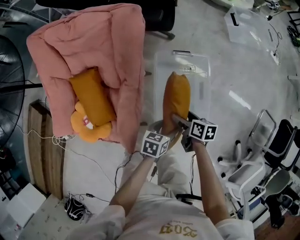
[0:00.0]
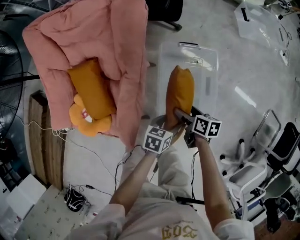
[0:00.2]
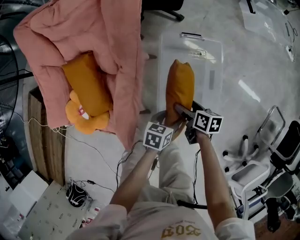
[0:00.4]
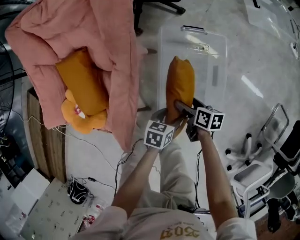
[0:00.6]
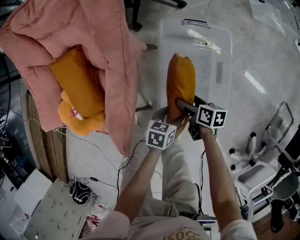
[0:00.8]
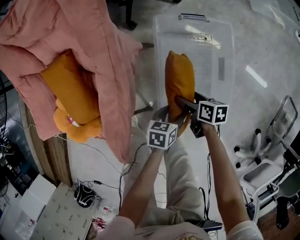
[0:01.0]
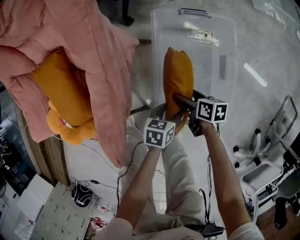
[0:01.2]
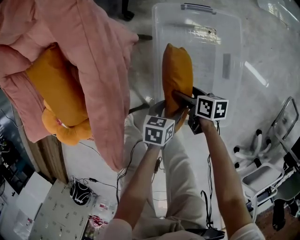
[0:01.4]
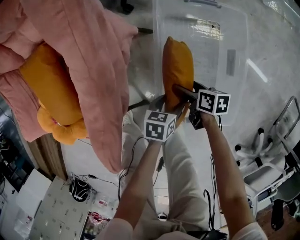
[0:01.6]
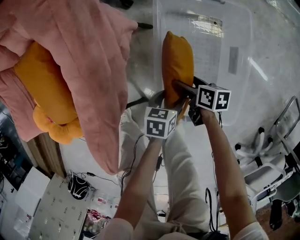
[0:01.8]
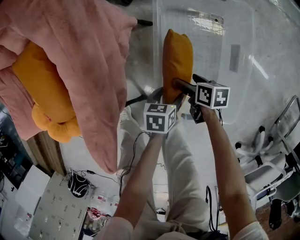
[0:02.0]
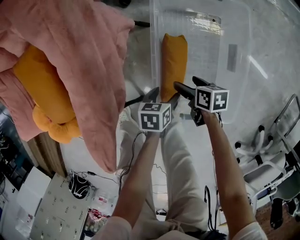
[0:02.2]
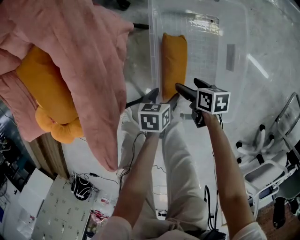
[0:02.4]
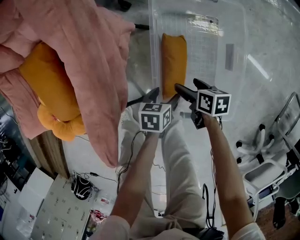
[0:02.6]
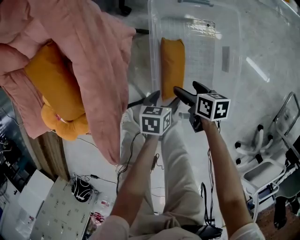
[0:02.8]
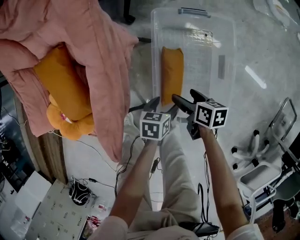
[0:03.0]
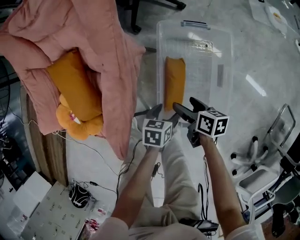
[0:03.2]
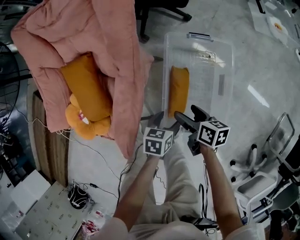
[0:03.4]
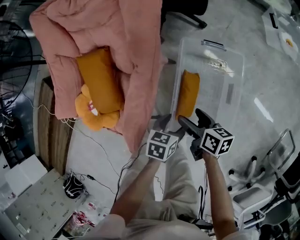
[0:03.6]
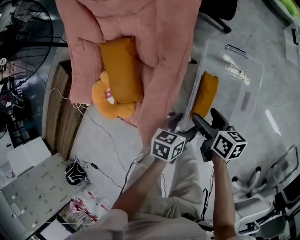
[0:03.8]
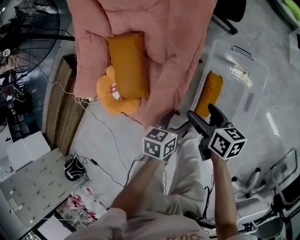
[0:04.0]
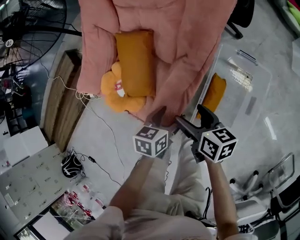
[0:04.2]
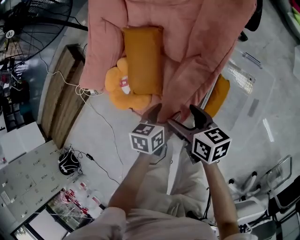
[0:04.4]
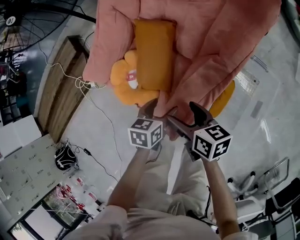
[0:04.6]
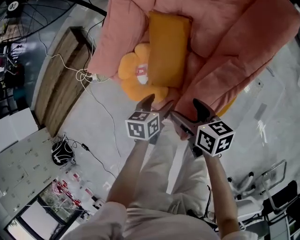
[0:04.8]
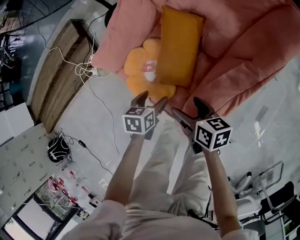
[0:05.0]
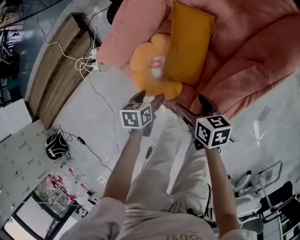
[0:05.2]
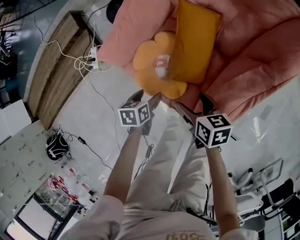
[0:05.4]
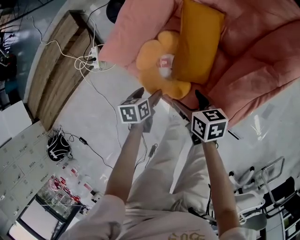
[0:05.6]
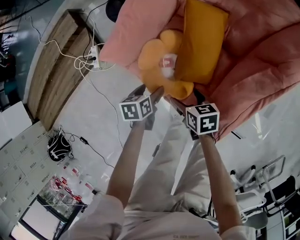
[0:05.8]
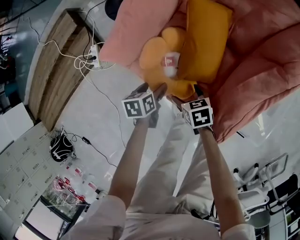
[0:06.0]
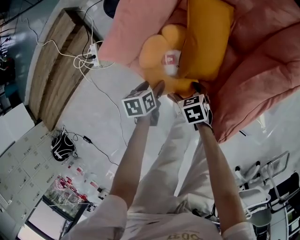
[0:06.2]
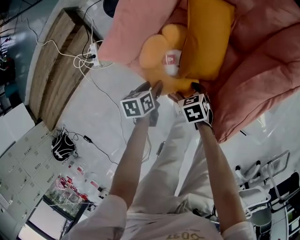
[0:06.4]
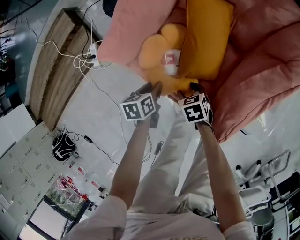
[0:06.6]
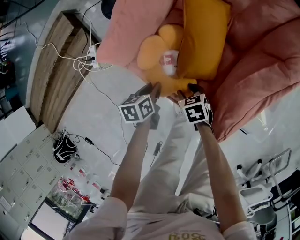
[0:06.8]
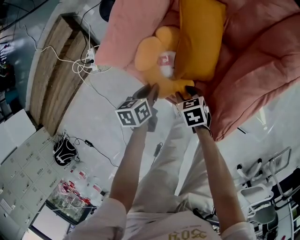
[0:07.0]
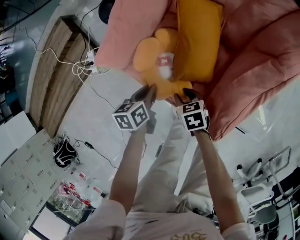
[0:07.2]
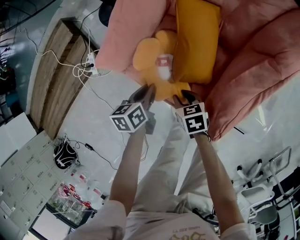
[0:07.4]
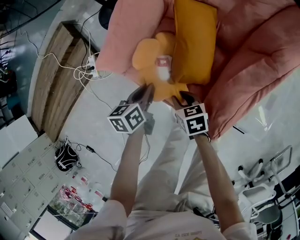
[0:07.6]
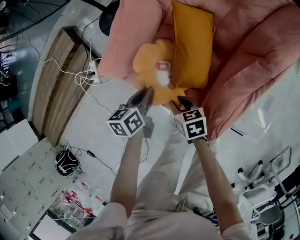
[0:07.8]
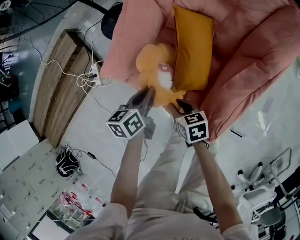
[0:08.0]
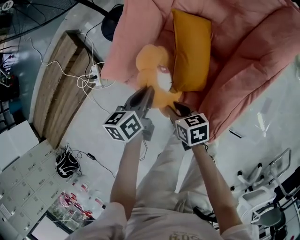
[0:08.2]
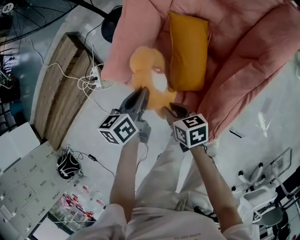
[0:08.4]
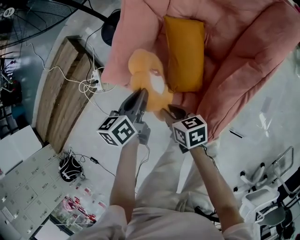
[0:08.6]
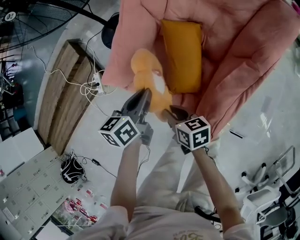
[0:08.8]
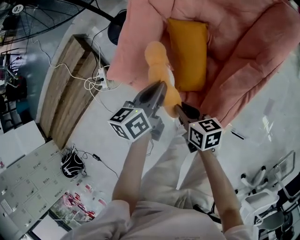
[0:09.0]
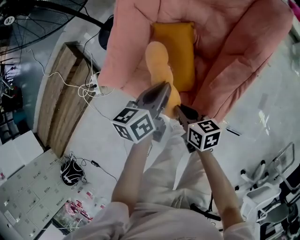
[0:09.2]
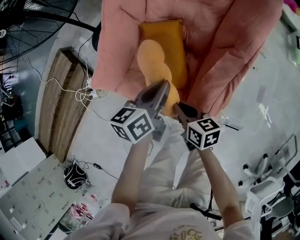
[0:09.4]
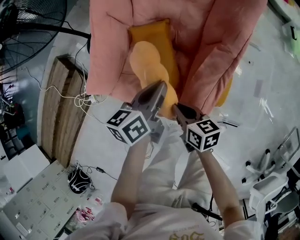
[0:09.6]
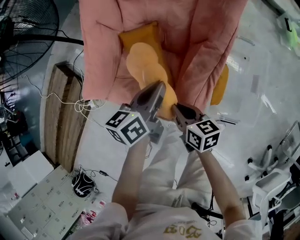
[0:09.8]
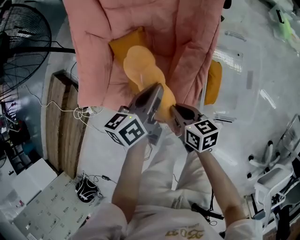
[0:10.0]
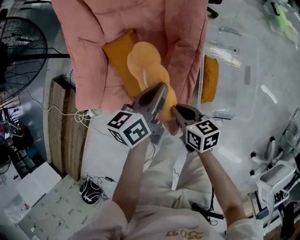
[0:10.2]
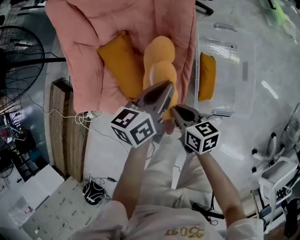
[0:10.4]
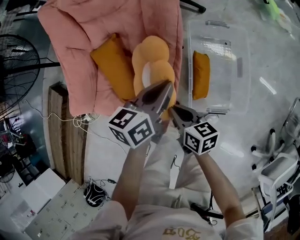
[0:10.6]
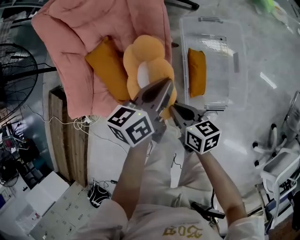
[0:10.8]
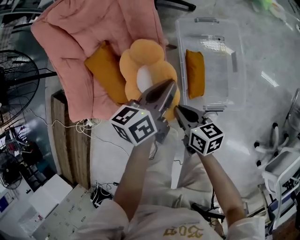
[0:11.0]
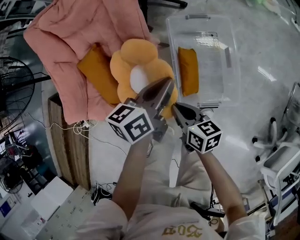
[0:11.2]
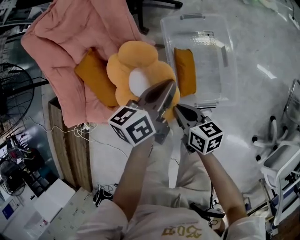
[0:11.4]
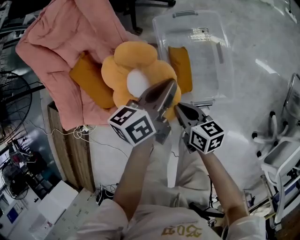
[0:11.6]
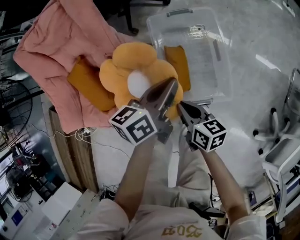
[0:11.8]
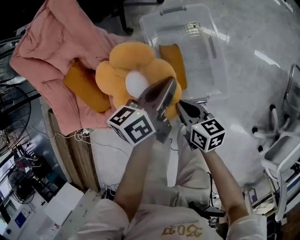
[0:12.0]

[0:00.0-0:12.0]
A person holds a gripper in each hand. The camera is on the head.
0:00.0 to 0:01.6: The two grippers go approximately 30 cm downward.
0:01.6 to 0:03.0: The right gripper travels upward by some 10 cm, while the left gripper travels upward by about 5 cm.
0:03.0 to 0:04.4: The two grippers go roughly 25 cm upward. The right gripper swivels roughly 30 degrees, while the left gripper swivels about 30 degrees.
0:04.4 to 0:06.0: Both grippers travel together to the left and downward, some 35 cm. The right gripper swivels some 40 degrees. The left gripper swivels some 20 degrees.
0:06.0 to 0:07.6: The right gripper closes; the left gripper heads upward, covering some 10 cm, and closes up.
0:07.6 to 0:09.0: The right gripper is displaced upward by approximately 15 cm, and turns by approximately 20 degrees. The left gripper moves upward and to the right, about 20 cm.
0:09.0 to 0:10.4: The two grippers go some 25 cm to the right. The left gripper turns by about 30 degrees. The right gripper turns by some 20 degrees.
0:10.4 to 0:12.0: The grippers both shift to the right by approximately 25 cm.

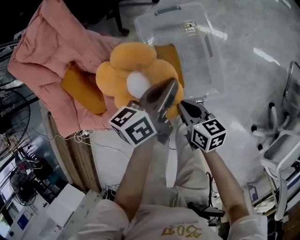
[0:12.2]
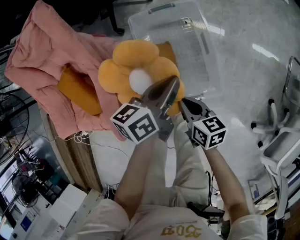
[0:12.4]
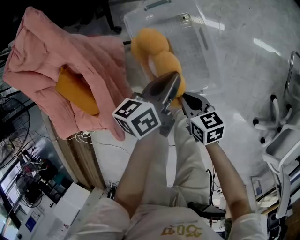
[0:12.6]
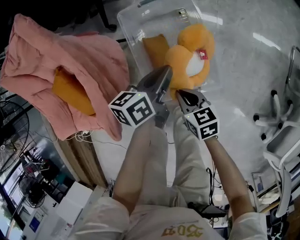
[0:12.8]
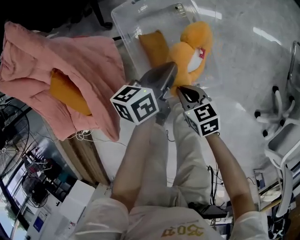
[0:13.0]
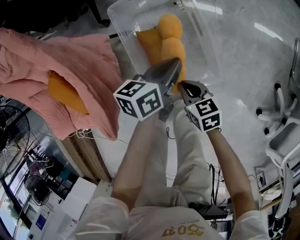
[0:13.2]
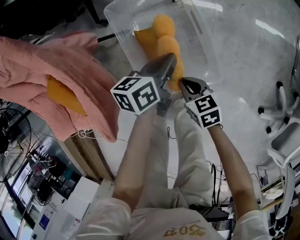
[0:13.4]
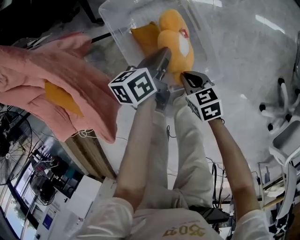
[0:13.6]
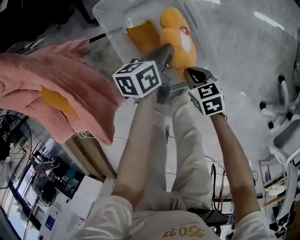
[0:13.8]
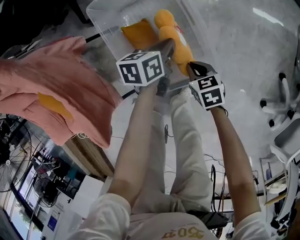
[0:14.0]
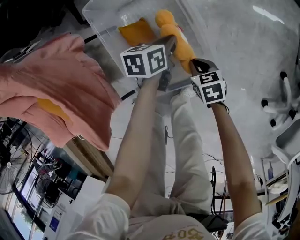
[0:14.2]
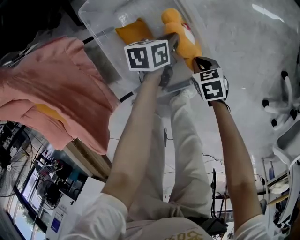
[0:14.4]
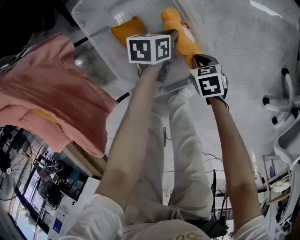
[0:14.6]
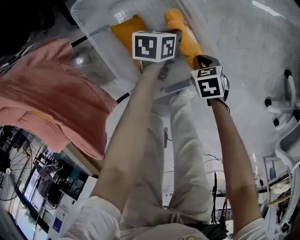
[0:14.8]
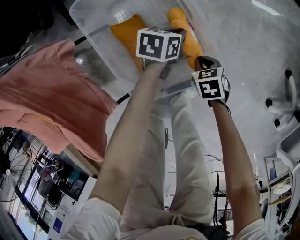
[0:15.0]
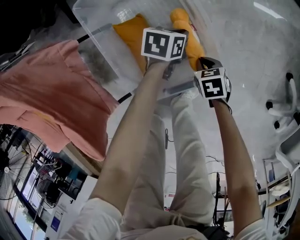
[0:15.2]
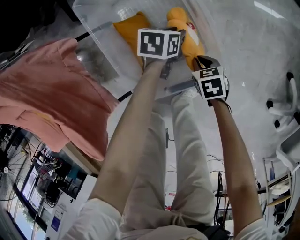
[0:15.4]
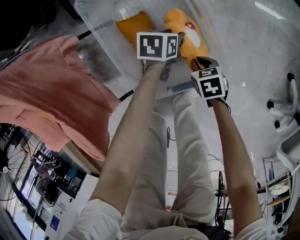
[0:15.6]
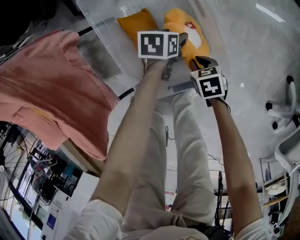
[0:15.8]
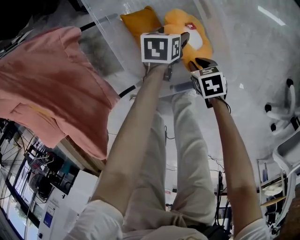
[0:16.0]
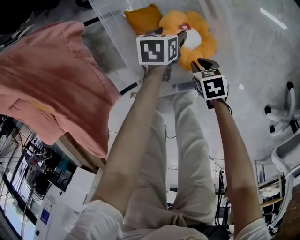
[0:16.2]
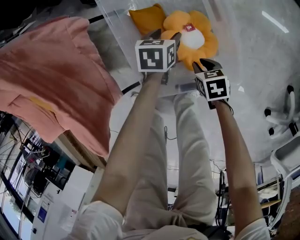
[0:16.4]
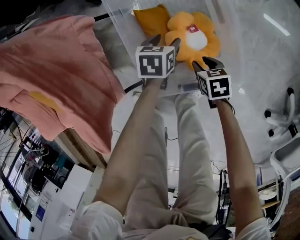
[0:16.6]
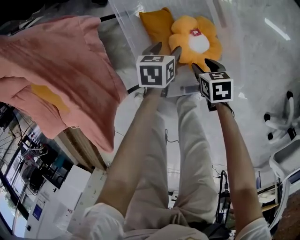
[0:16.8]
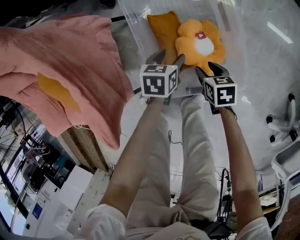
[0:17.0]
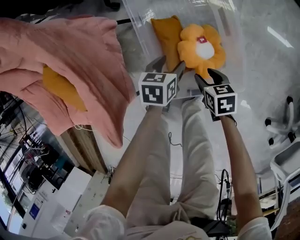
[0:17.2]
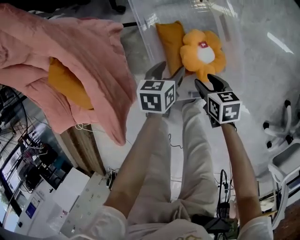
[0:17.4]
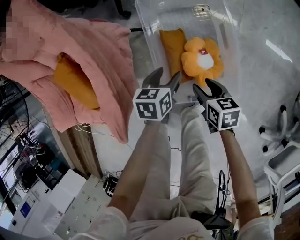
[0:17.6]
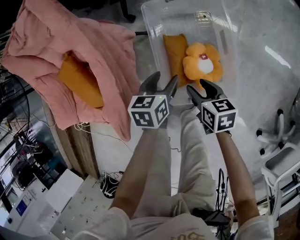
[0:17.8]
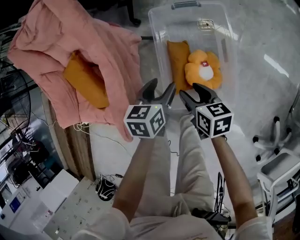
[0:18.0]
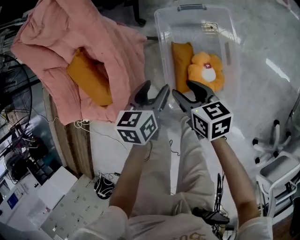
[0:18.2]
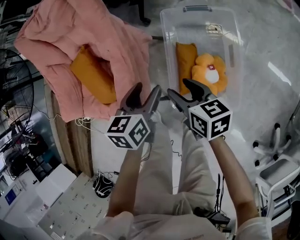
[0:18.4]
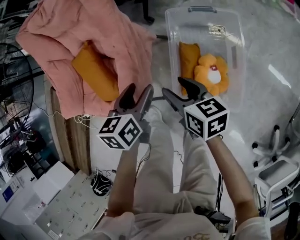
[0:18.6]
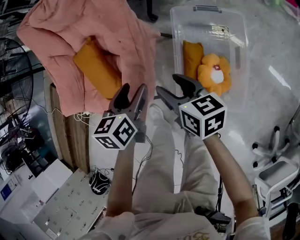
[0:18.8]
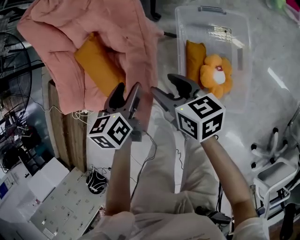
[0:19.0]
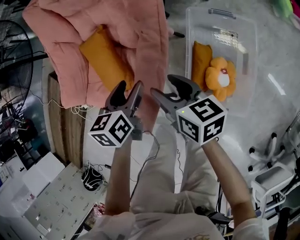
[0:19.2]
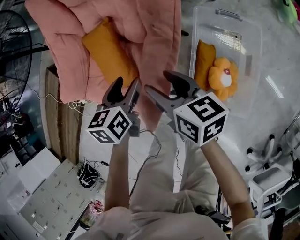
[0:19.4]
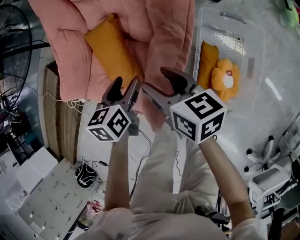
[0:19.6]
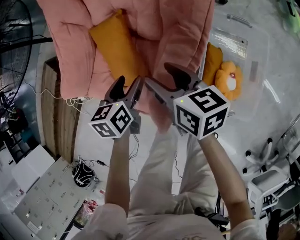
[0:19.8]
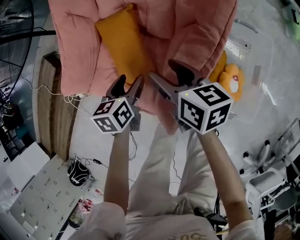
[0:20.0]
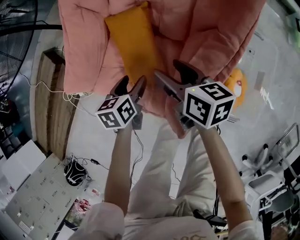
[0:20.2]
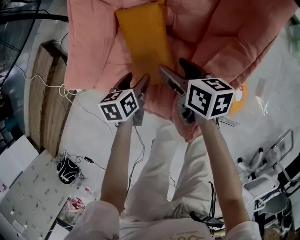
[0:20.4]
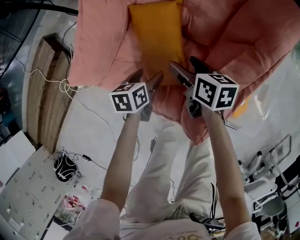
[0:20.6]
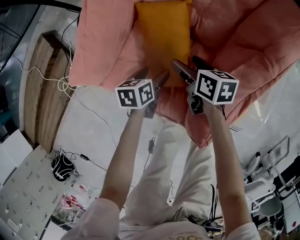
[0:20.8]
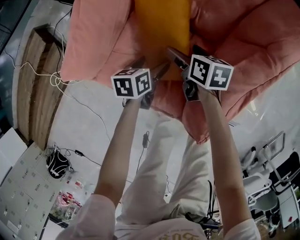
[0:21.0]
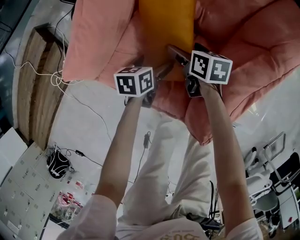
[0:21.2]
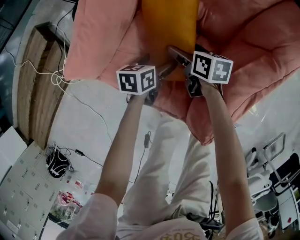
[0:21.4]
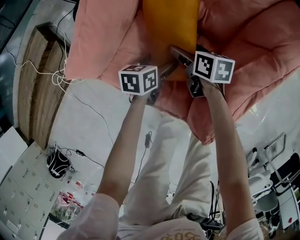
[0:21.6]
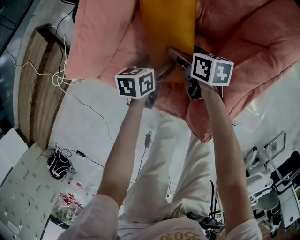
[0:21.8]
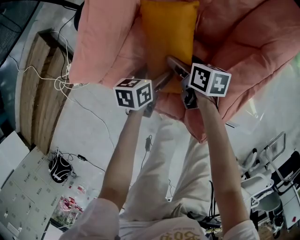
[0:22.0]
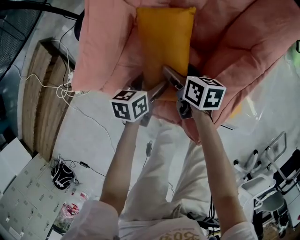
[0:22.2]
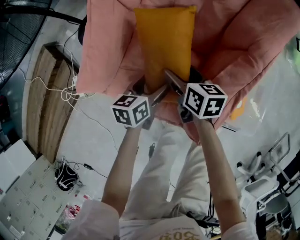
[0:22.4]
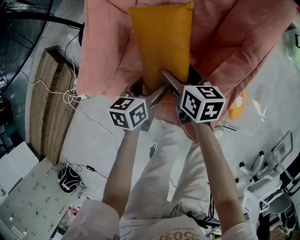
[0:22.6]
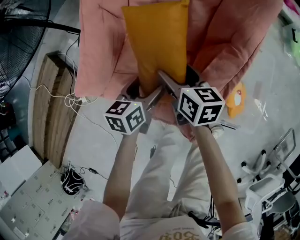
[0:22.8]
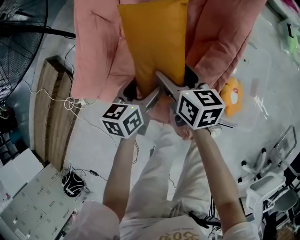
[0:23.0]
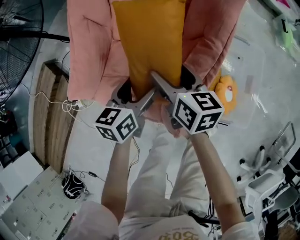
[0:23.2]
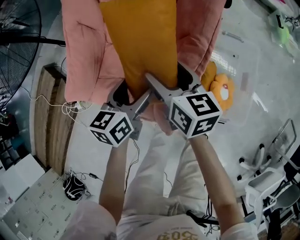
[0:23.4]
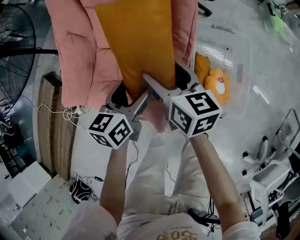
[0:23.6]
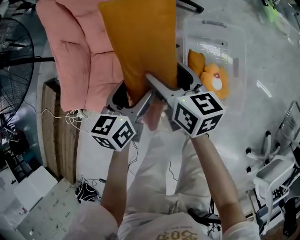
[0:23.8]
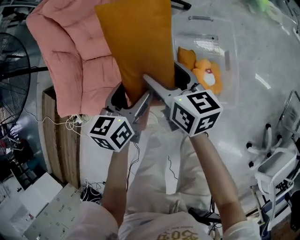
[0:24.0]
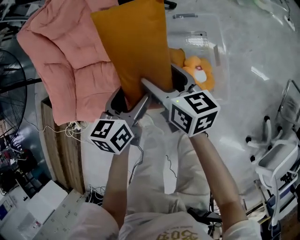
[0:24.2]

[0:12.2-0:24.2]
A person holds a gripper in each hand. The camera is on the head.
0:12.2 to 0:13.8: The two grippers go some 25 cm downward and to the right. The left gripper rotates about 20 degrees, while the right gripper changes its angle by approximately 20 degrees.
0:13.8 to 0:15.2: The left gripper travels downward by roughly 15 cm, and changes its angle by roughly 30 degrees, while the right gripper goes some 15 cm downward and to the right.
0:15.2 to 0:16.6: The left gripper changes place by roughly 15 cm, swivels roughly 20 degrees, and opens its fingers, while the right gripper changes place by some 10 cm.
0:16.6 to 0:18.2: The two grippers go roughly 30 cm upward. The right gripper turns by roughly 30 degrees. Meanwhile the left gripper swivels approximately 30 degrees.
0:18.2 to 0:19.8: The left gripper is displaced to the left by approximately 30 cm, and rotates some 20 degrees; the right gripper travels to the left and forward by roughly 30 cm.
0:19.8 to 0:21.2: The left gripper moves downward and to the left, some 20 cm, and opens. Meanwhile the right gripper heads downward, to the left and forward, covering some 30 cm, rotates approximately 20 degrees, and opens up.
0:21.2 to 0:22.6: Both grippers move upward, roughly 15 cm.
0:22.6 to 0:24.2: The two grippers go some 35 cm to the right. The right gripper turns by approximately 20 degrees.
